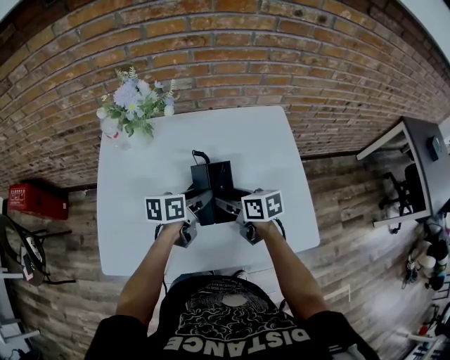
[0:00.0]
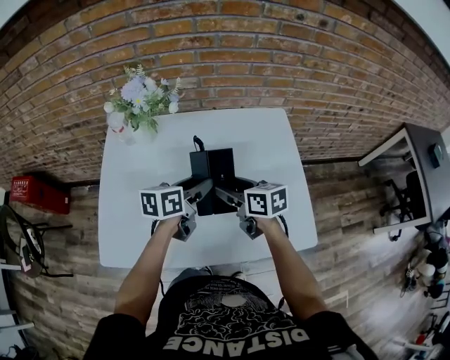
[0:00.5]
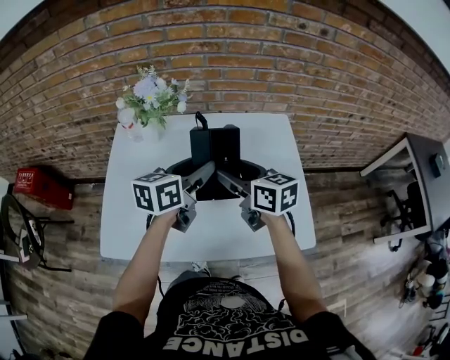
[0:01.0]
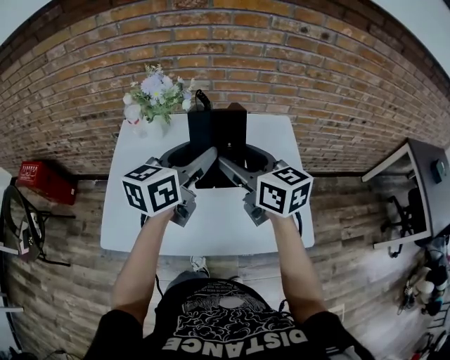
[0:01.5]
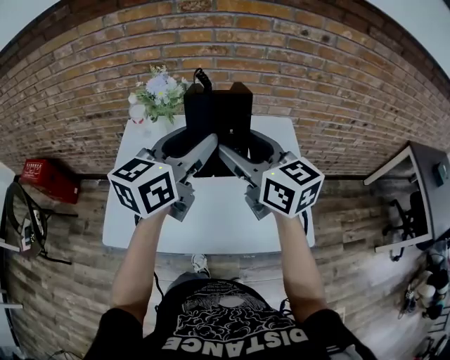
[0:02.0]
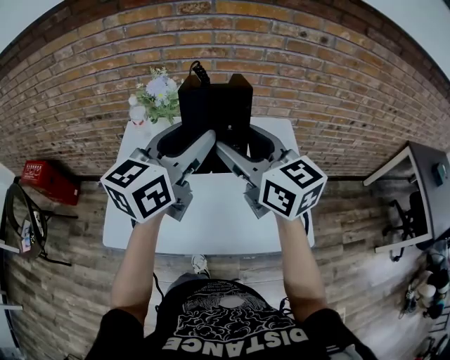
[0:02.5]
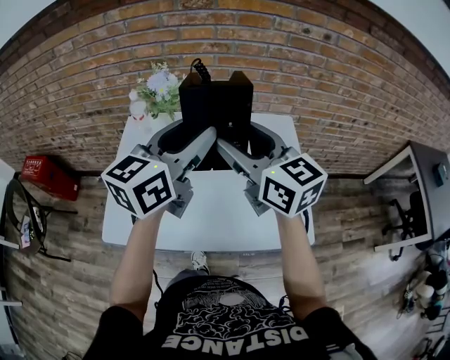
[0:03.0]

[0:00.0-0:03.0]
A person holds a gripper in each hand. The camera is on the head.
0:00.0 to 0:01.5: The two grippers go about 25 cm upward. The left gripper turns by about 30 degrees; the right gripper turns by approximately 30 degrees.
0:01.5 to 0:03.0: Both grippers travel together upward, about 10 cm.

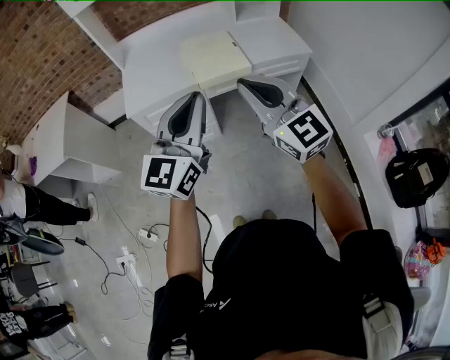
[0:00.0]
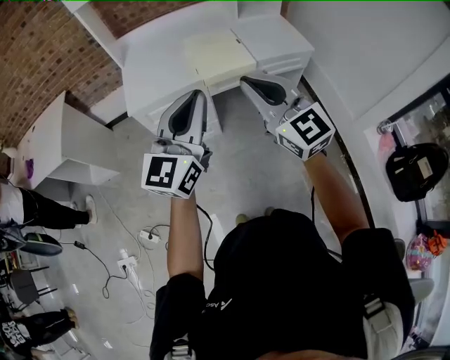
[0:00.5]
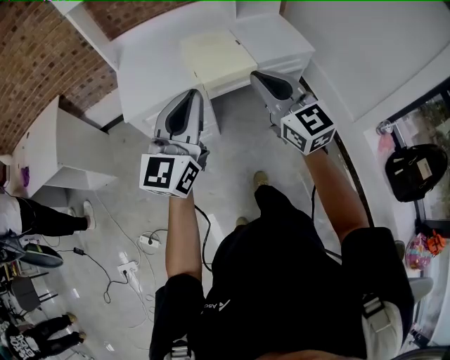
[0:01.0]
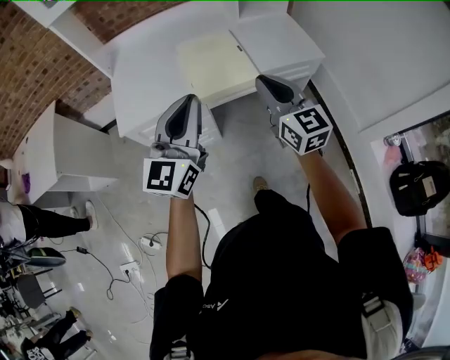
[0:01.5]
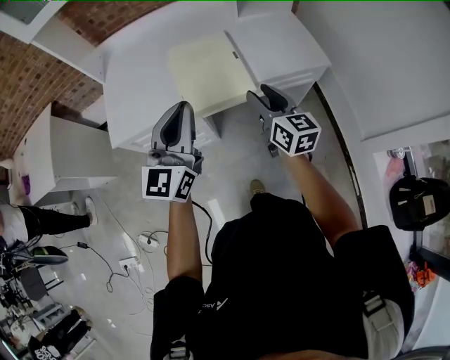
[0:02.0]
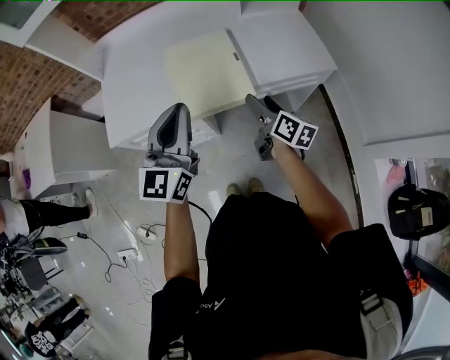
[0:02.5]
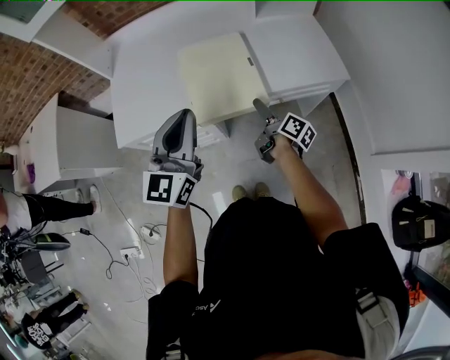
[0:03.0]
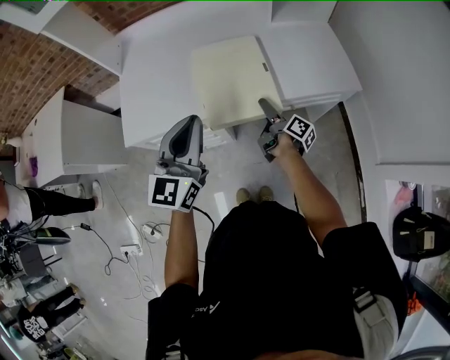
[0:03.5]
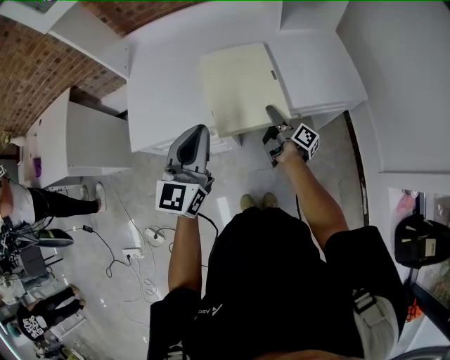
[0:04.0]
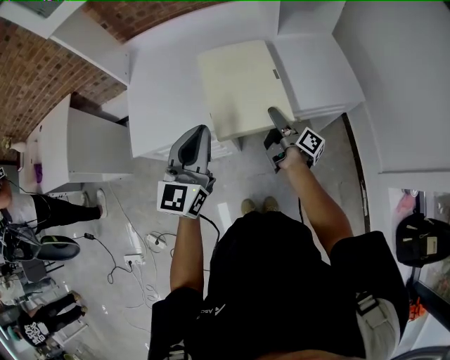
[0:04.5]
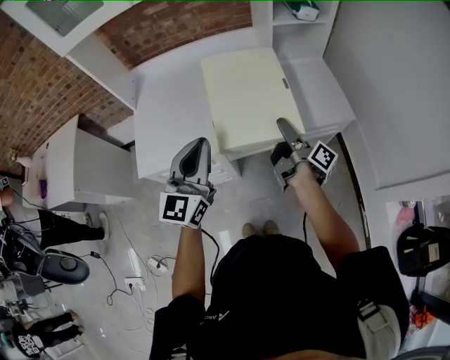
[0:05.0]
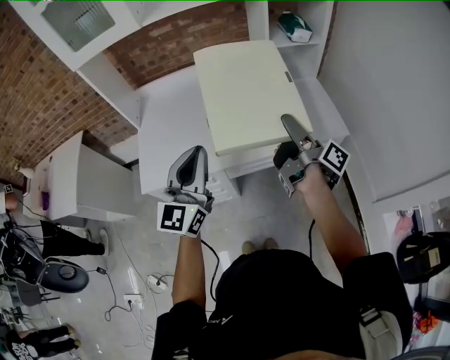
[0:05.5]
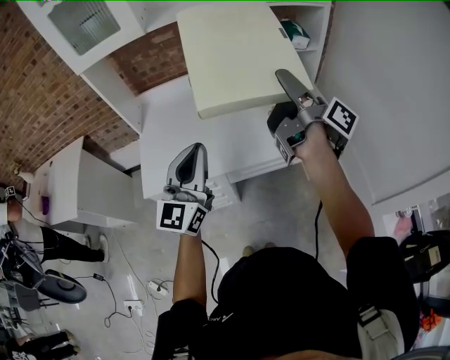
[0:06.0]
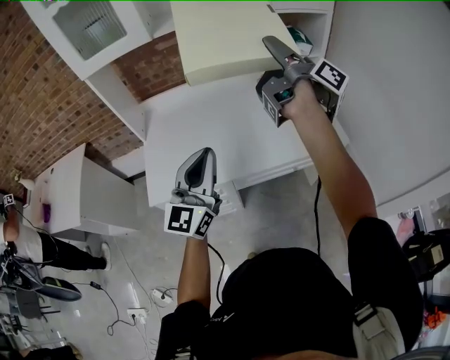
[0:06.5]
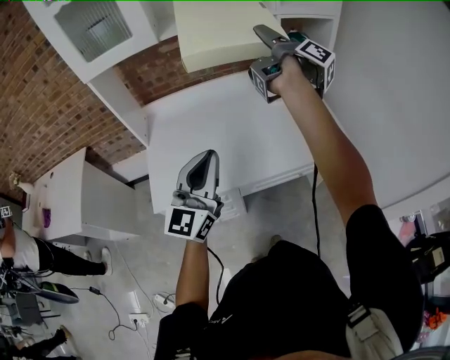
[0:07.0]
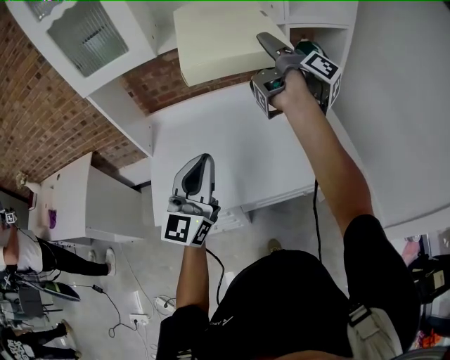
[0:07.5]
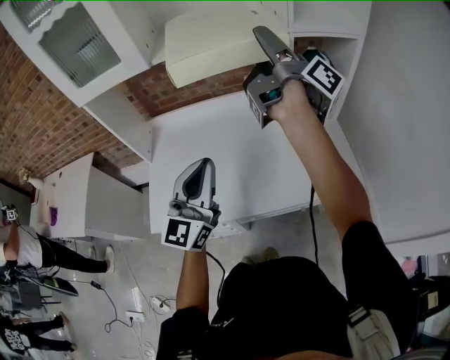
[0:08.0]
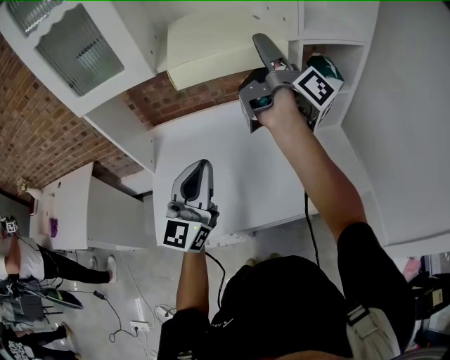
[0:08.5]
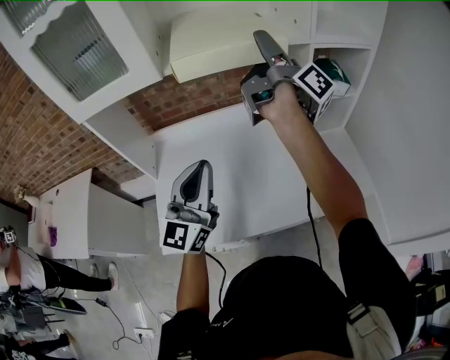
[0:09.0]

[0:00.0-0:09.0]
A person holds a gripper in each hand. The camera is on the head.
0:00.0 to 0:02.0: The left gripper is displaced forward by roughly 25 cm; the right gripper shifts some 35 cm forward and downward, swivels some 40 degrees, and opens.
0:02.0 to 0:04.5: The left gripper heads forward and to the left, covering some 10 cm. Meanwhile the right gripper travels downward and forward by some 15 cm, and twists about 70 degrees clockwise, seen from behind.
0:04.5 to 0:07.0: The left gripper moves upward, about 15 cm. The right gripper is displaced upward by roughly 40 cm.
0:07.0 to 0:09.0: Both grippers move forward, some 15 cm.

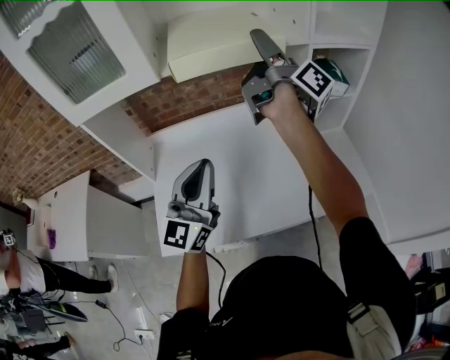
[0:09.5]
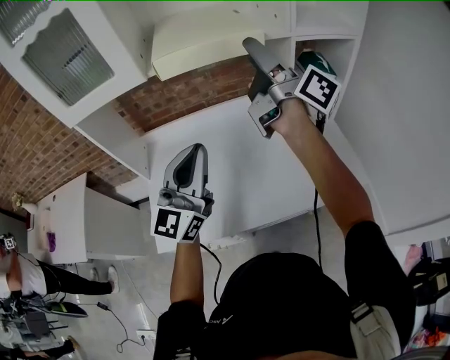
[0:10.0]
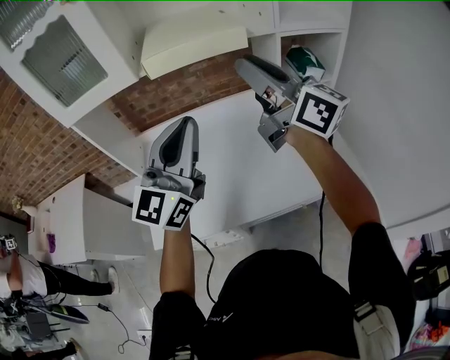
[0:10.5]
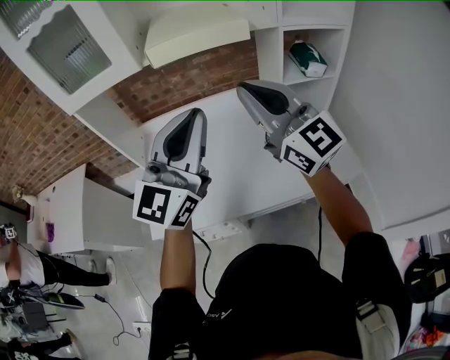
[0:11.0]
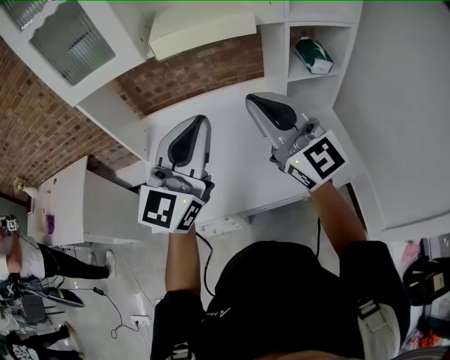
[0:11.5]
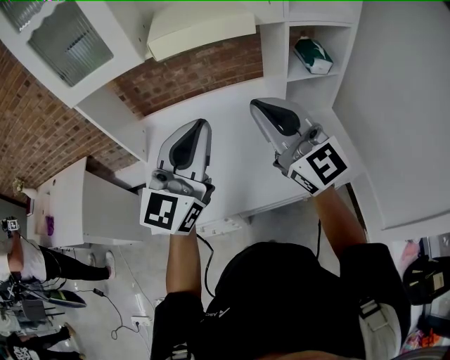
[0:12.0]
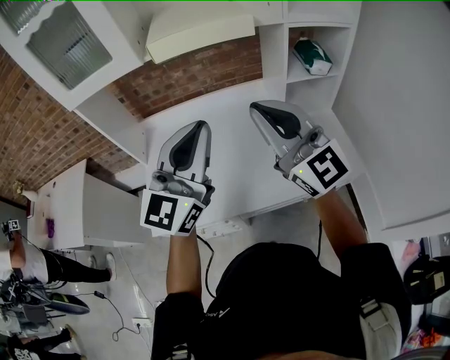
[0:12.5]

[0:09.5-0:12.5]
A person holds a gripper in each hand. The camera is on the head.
0:09.5 to 0:11.0: The right gripper goes roughly 20 cm backward, rolls counterclockwise, seen from behind, by about 80 degrees, and closes, while the left gripper shifts roughly 15 cm upward, to the right and backward.
0:11.0 to 0:12.5: There are only small adjustments of the grippers.

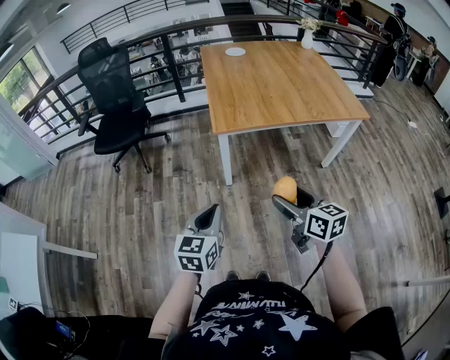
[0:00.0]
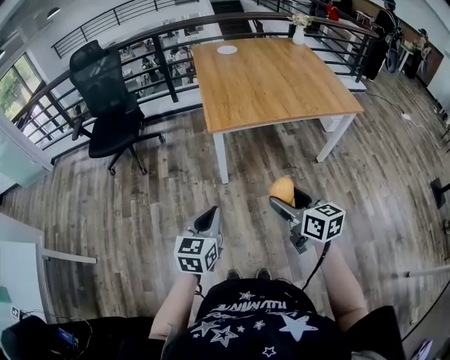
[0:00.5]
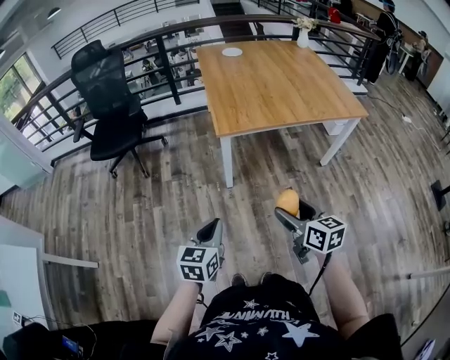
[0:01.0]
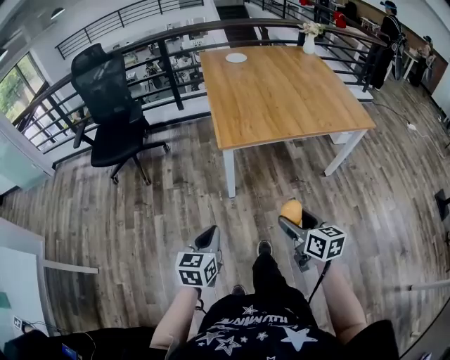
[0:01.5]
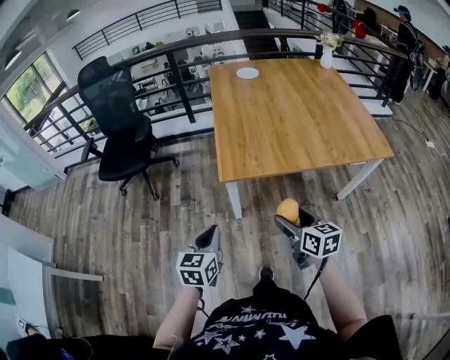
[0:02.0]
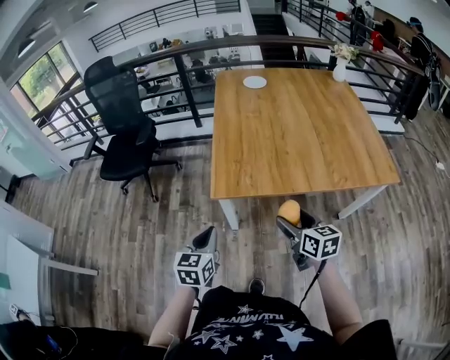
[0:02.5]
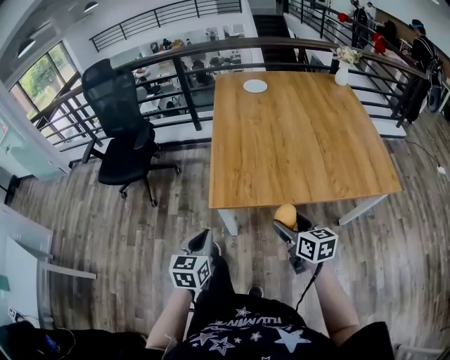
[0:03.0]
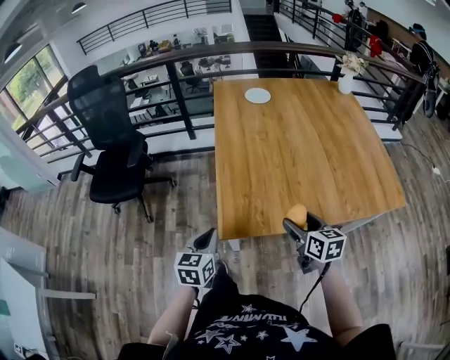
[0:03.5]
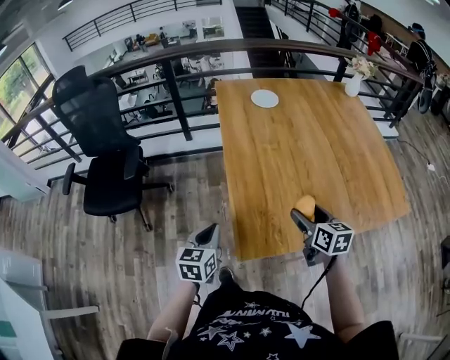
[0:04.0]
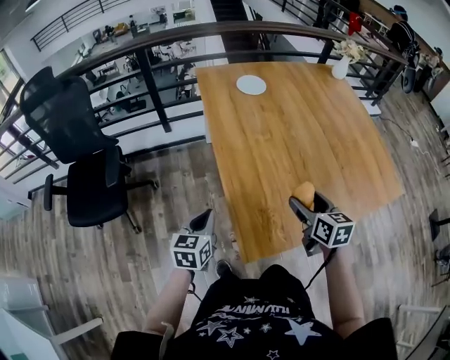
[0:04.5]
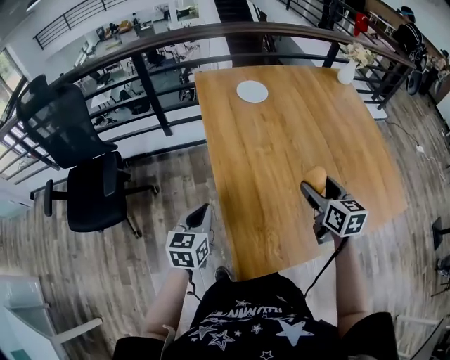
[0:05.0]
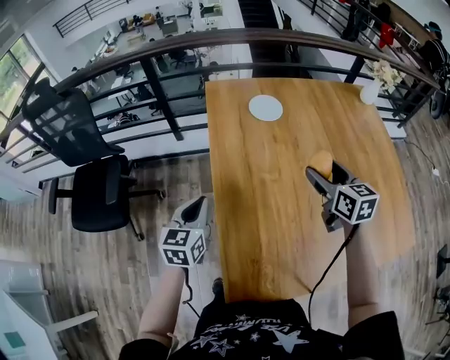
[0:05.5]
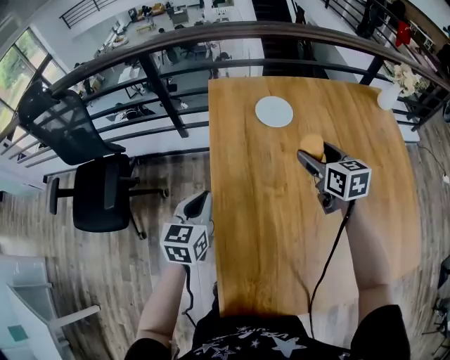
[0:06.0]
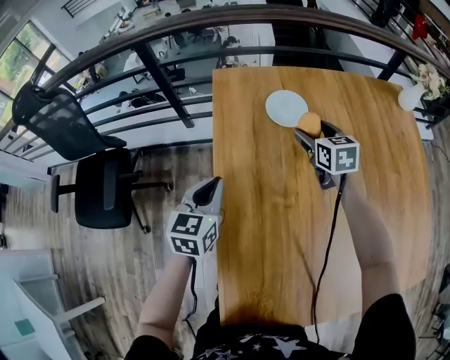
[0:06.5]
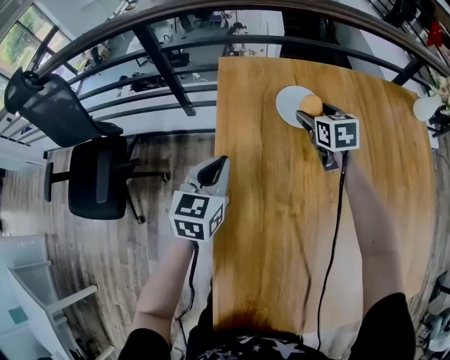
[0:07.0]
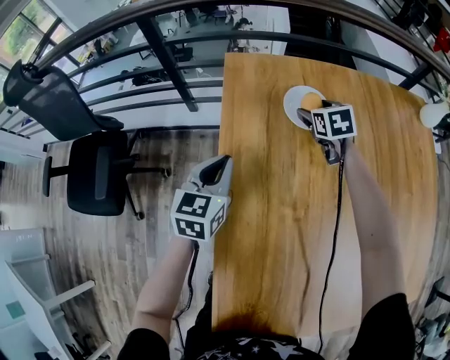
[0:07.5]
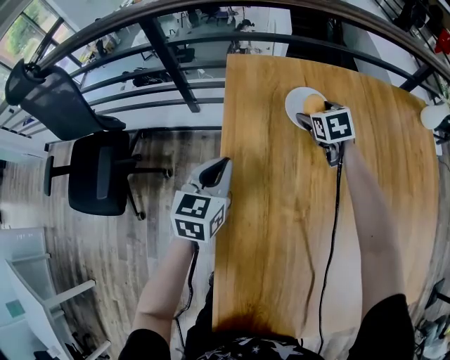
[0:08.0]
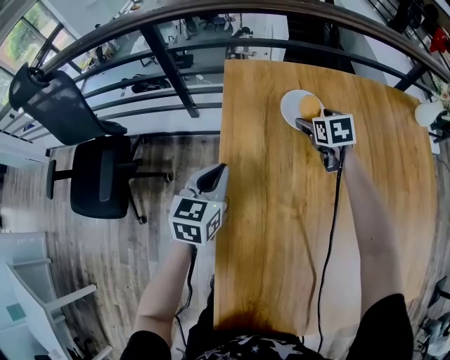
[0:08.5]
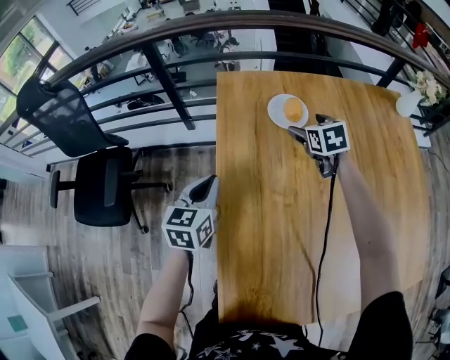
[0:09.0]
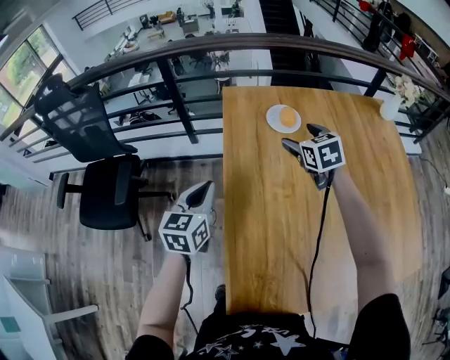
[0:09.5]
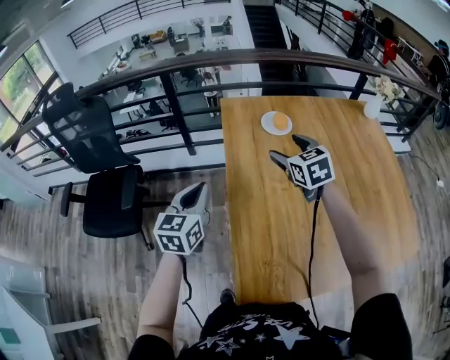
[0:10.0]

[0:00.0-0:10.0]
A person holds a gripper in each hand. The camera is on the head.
0:00.0 to 0:02.0: The two grippers go approximately 20 cm forward.
0:02.0 to 0:04.0: Both grippers move forward, some 35 cm.
0:04.0 to 0:06.0: The grippers both shift forward by some 35 cm.
0:06.0 to 0:08.0: The right gripper travels forward and downward by roughly 25 cm, and swivels about 30 degrees. Meanwhile the left gripper is displaced forward by about 15 cm.
0:08.0 to 0:10.0: The left gripper goes about 25 cm backward, upward and to the left. The right gripper heads backward and upward, covering roughly 35 cm.

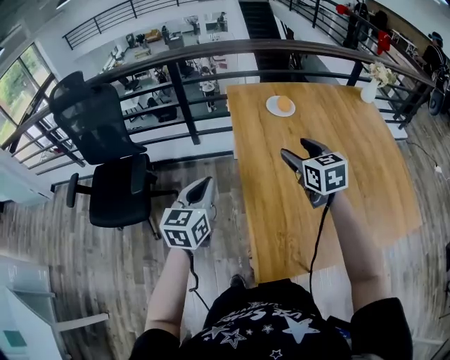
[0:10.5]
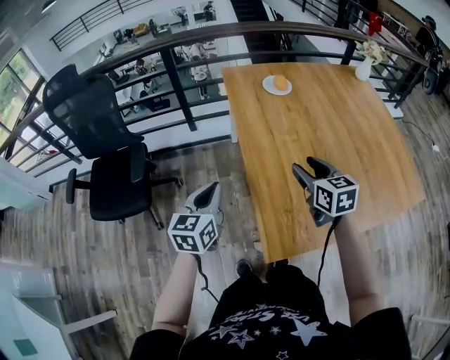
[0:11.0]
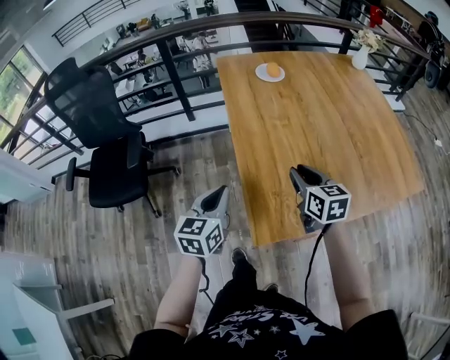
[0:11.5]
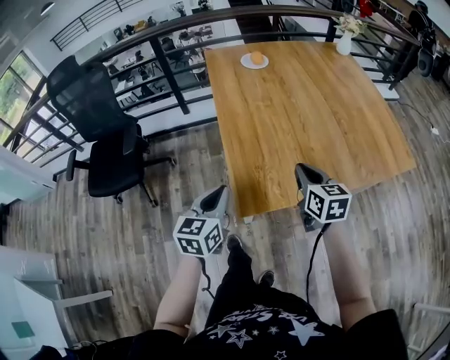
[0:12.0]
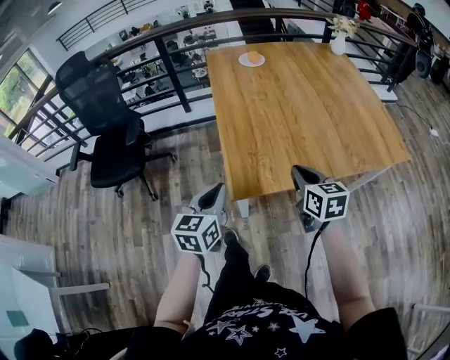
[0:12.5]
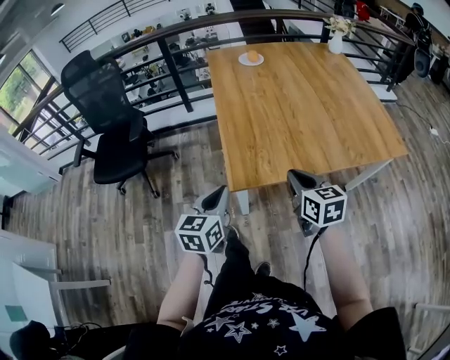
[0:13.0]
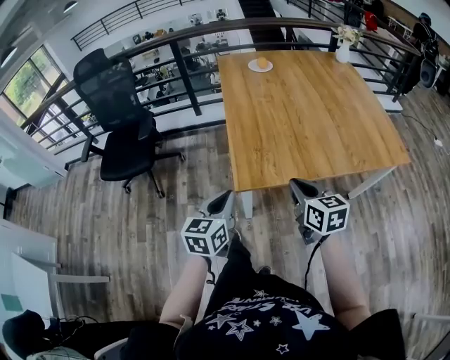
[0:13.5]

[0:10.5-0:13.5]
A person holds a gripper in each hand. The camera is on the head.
0:10.5 to 0:12.0: The left gripper shifts roughly 25 cm backward and to the right, while the right gripper shifts some 30 cm backward, and closes up.
0:12.0 to 0:13.5: The two grippers go approximately 15 cm backward.
